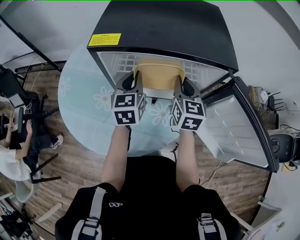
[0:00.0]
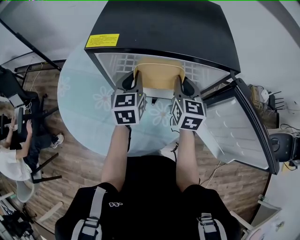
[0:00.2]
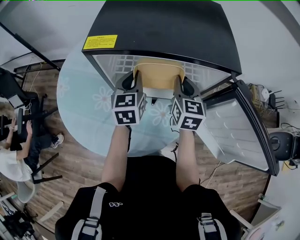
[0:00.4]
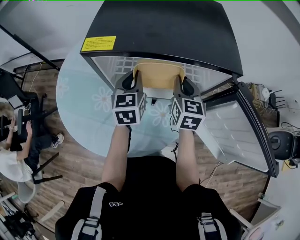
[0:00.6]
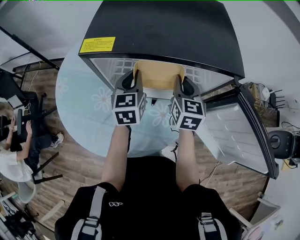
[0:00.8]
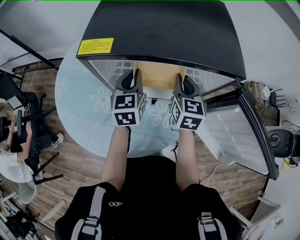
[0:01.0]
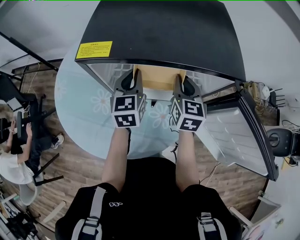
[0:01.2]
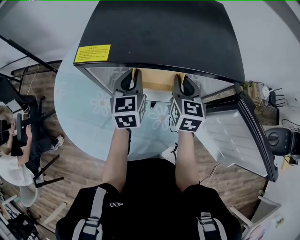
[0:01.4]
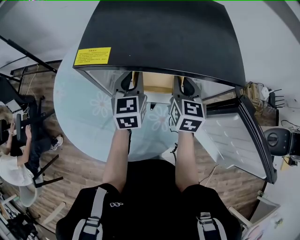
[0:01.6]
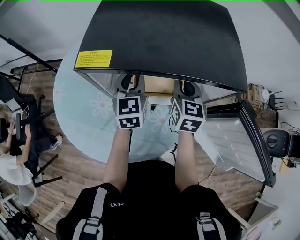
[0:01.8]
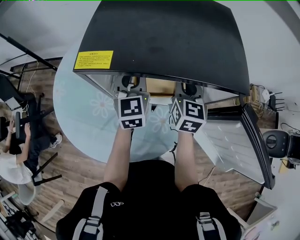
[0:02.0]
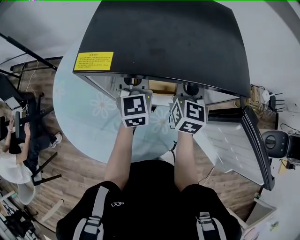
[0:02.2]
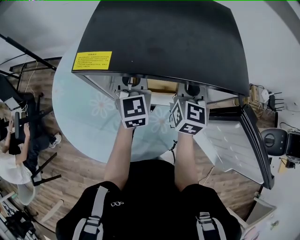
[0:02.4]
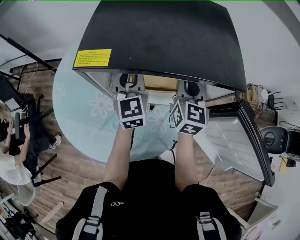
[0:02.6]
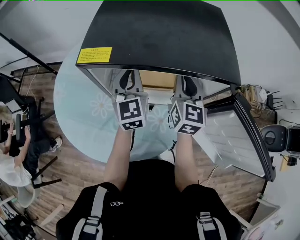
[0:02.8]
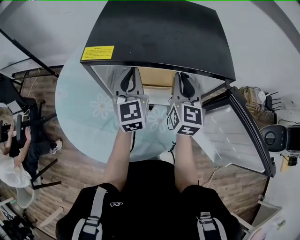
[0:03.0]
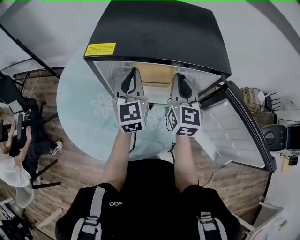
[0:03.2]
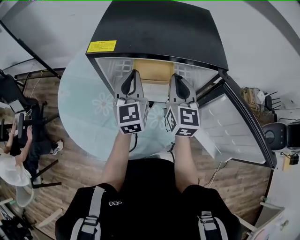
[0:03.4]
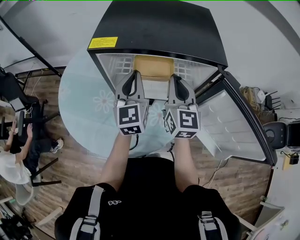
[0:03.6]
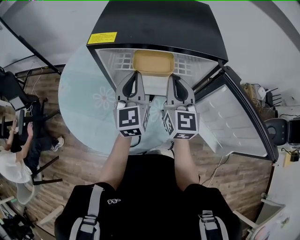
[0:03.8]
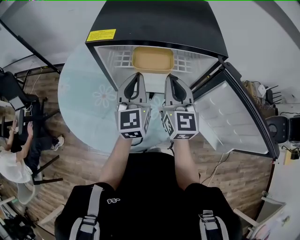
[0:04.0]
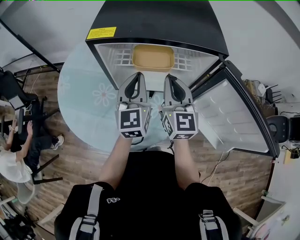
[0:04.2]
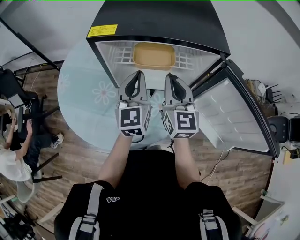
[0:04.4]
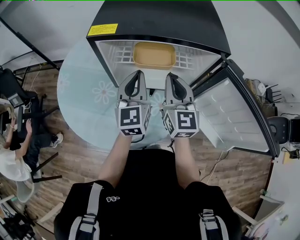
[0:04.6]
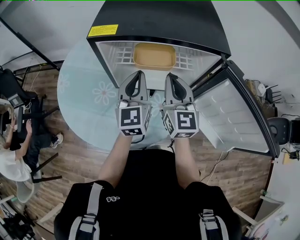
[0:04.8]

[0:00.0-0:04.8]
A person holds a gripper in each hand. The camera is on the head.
0:00.0 to 0:01.6: The left gripper travels forward by about 5 cm. Meanwhile the right gripper moves about 5 cm.
0:01.6 to 0:03.2: The grippers both shift upward by roughly 5 cm.
0:03.2 to 0:04.8: Both grippers move backward, some 5 cm.

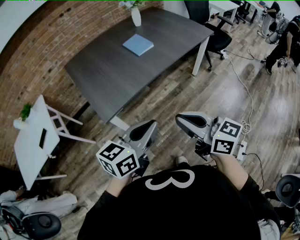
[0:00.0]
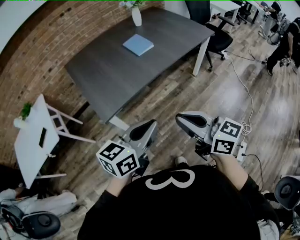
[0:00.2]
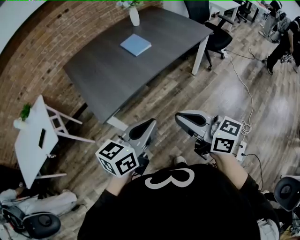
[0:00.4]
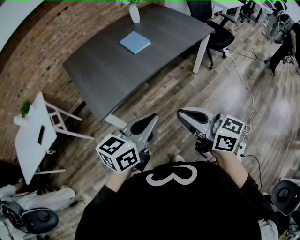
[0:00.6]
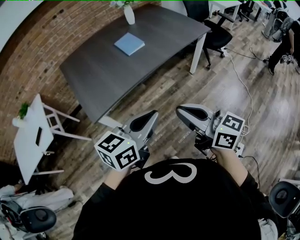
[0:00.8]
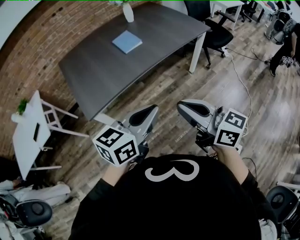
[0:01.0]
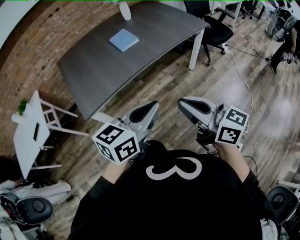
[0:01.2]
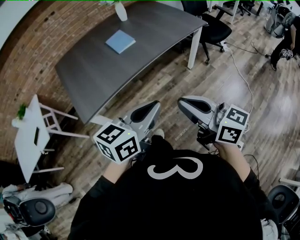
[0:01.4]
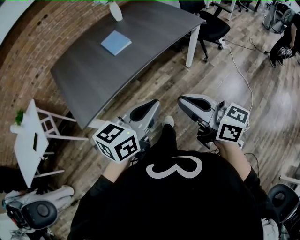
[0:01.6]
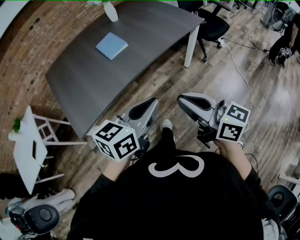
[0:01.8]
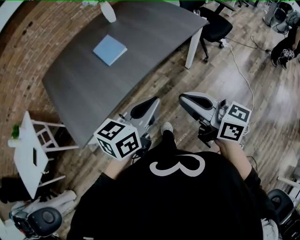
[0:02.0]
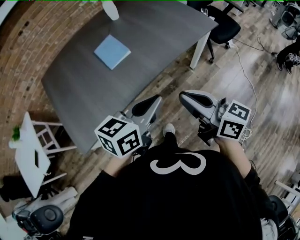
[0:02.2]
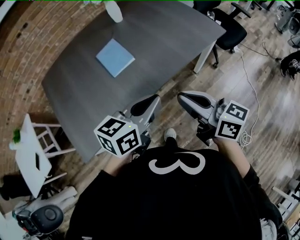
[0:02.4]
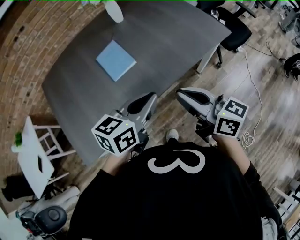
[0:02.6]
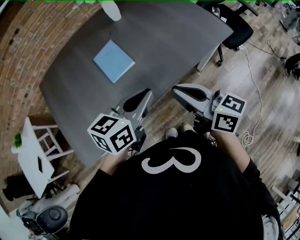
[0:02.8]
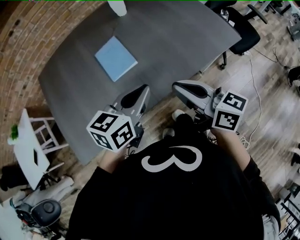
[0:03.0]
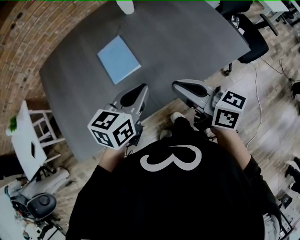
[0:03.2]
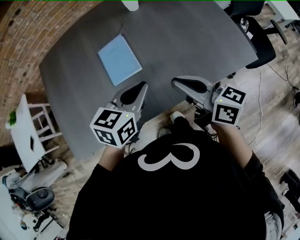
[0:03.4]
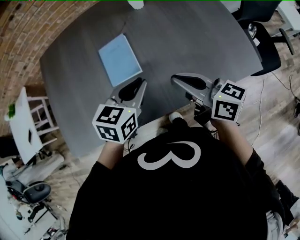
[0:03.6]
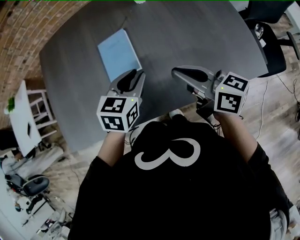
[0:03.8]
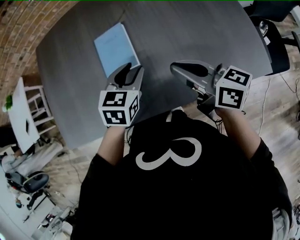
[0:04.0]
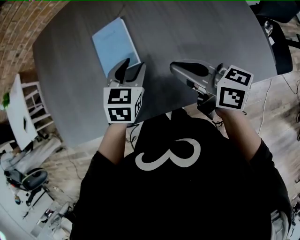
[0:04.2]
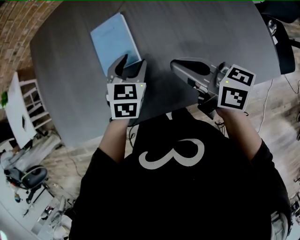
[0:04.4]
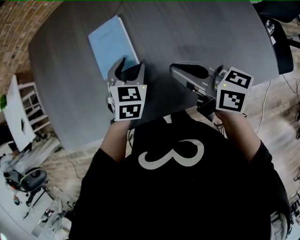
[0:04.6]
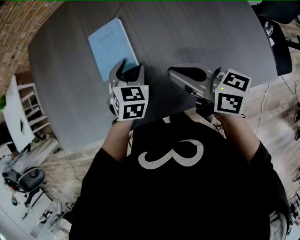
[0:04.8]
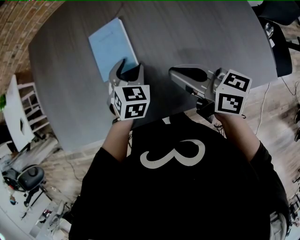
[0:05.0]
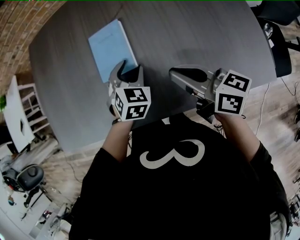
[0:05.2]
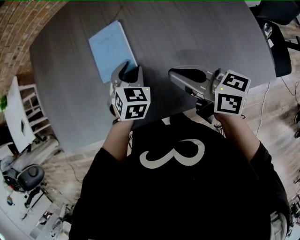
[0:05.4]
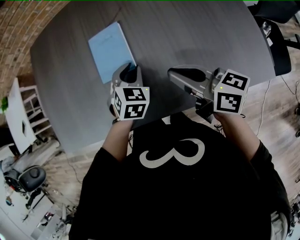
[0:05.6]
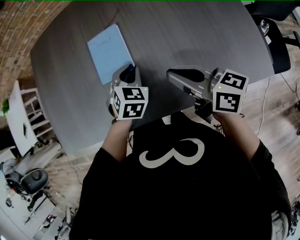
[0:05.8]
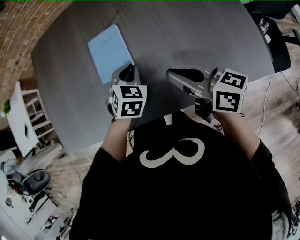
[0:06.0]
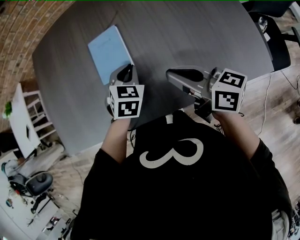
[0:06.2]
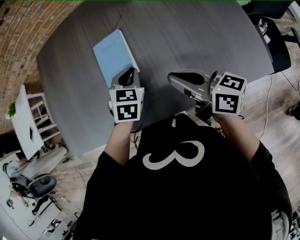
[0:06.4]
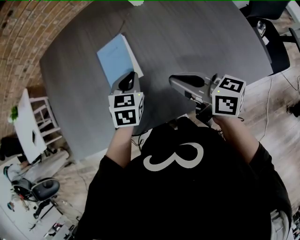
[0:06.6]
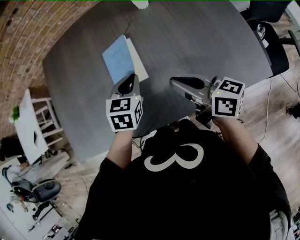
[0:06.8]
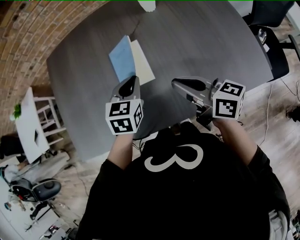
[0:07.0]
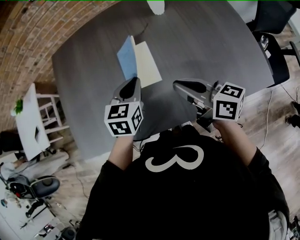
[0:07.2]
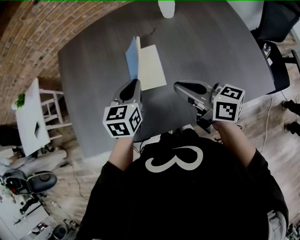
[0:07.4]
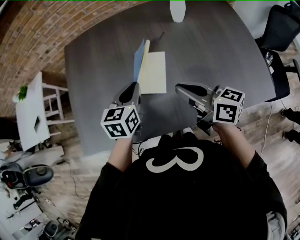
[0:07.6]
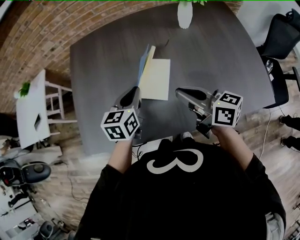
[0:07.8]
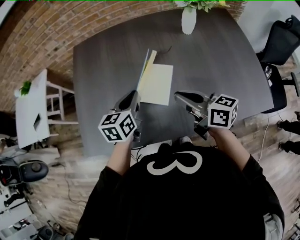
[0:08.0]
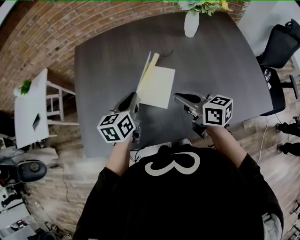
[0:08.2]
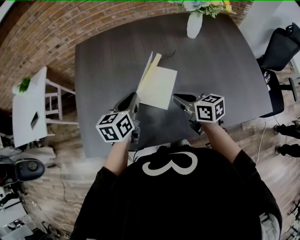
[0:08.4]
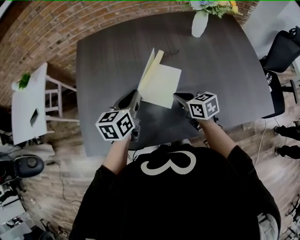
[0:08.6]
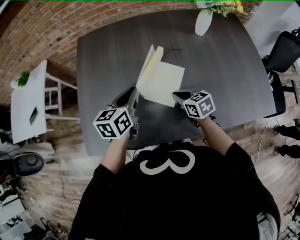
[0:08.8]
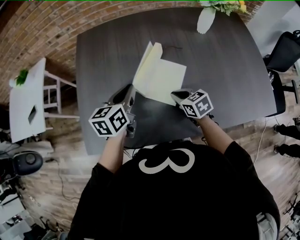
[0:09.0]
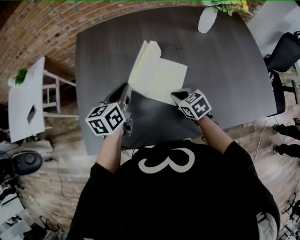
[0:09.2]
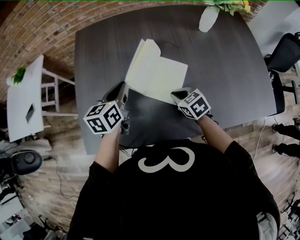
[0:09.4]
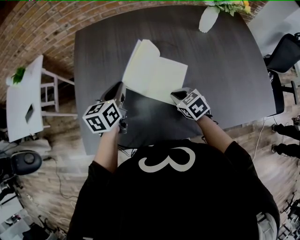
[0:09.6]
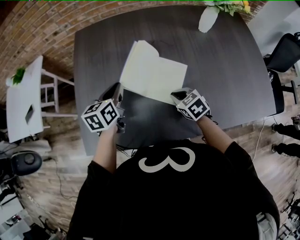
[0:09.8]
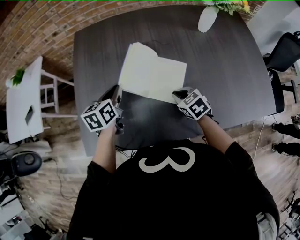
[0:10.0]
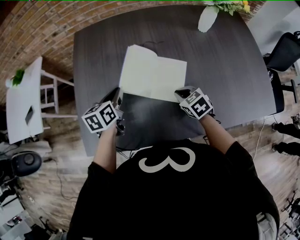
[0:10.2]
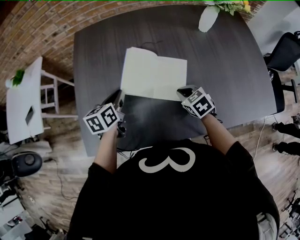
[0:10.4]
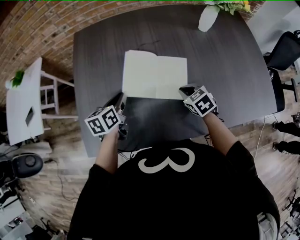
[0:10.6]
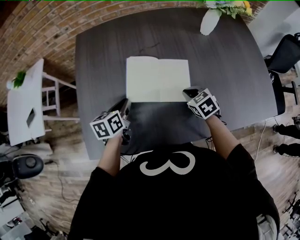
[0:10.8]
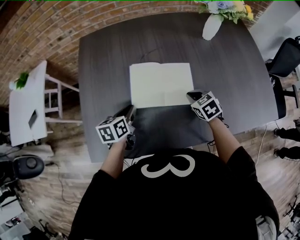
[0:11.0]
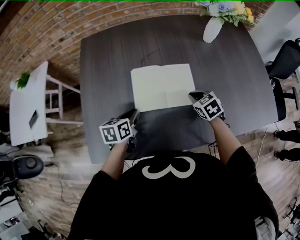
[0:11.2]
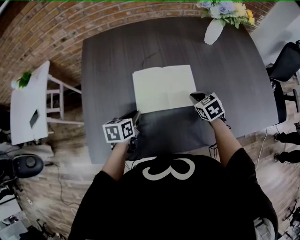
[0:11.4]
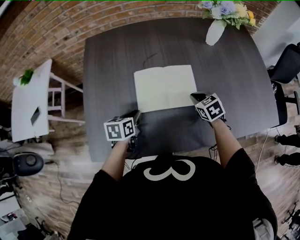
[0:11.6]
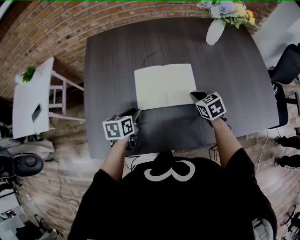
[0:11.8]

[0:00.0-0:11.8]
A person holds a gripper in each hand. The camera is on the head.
0:00.0 to 0:01.4: Both grippers travel together to the right, approximately 15 cm.
0:01.4 to 0:03.0: Both grippers travel together forward, approximately 40 cm.
0:03.0 to 0:04.4: The right gripper moves some 20 cm, and swivels approximately 30 degrees. Meanwhile the left gripper ends up roughly 25 cm from where it was, swivels roughly 40 degrees, and opens.
0:04.4 to 0:06.0: The left gripper closes its fingers.
0:06.0 to 0:07.4: The left gripper is displaced upward and to the left by approximately 15 cm, and changes its angle by some 30 degrees; the right gripper shifts approximately 10 cm to the left and upward.
0:07.4 to 0:08.8: The left gripper goes some 15 cm to the left. The right gripper goes some 20 cm downward, to the left and forward, and points its fingers approximately 30 degrees further downward.
0:08.8 to 0:10.4: The right gripper rotates about 20 degrees. Meanwhile the left gripper heads to the left and downward, covering some 10 cm.
0:10.4 to 0:11.8: The right gripper shifts by about 5 cm; the left gripper travels downward and backward by about 10 cm.

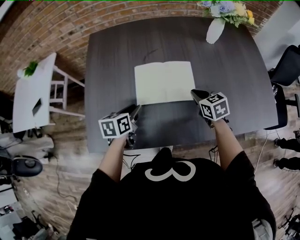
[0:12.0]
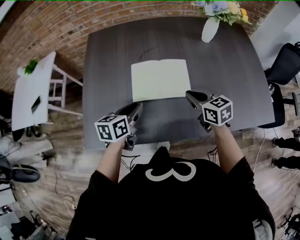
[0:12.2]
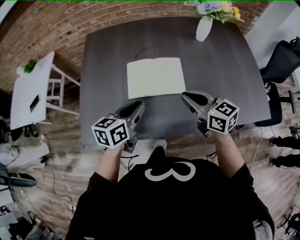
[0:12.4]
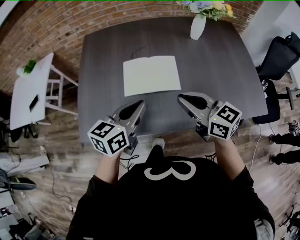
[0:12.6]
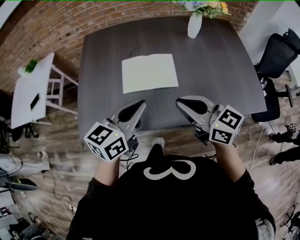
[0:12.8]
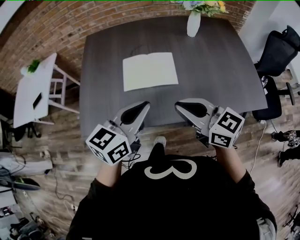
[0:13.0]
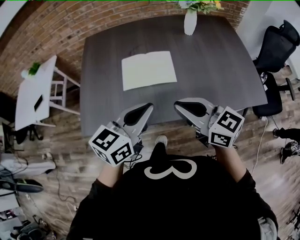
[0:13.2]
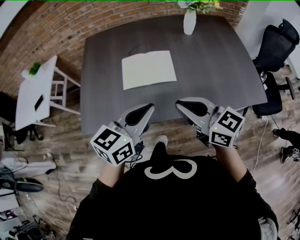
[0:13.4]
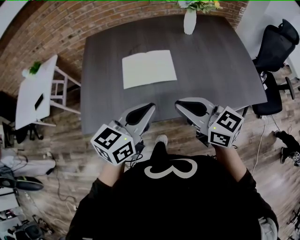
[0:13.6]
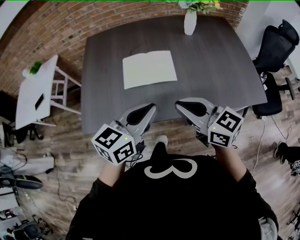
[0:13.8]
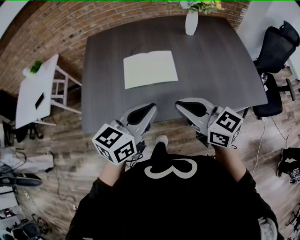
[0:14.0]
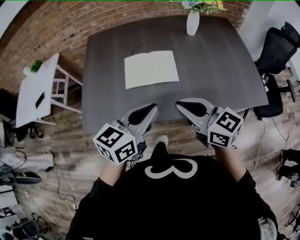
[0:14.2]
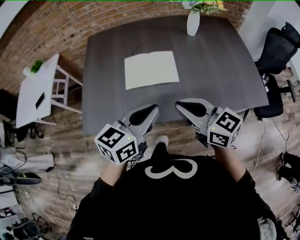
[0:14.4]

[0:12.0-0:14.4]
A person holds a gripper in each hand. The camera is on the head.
0:12.0 to 0:13.2: The left gripper is displaced upward, backward and to the right by about 30 cm, rotates about 40 degrees, and closes up, while the right gripper moves backward and upward, approximately 30 cm, and tilts its fingers about 30 degrees upward.
0:13.2 to 0:14.4: There are only small adjustments of the grippers.

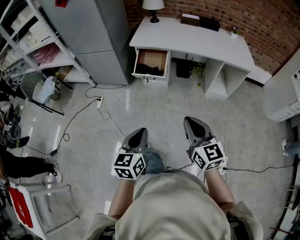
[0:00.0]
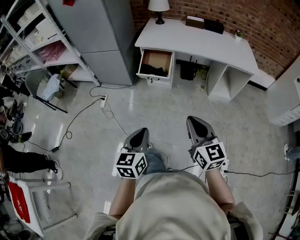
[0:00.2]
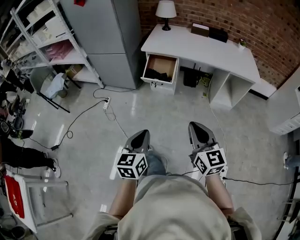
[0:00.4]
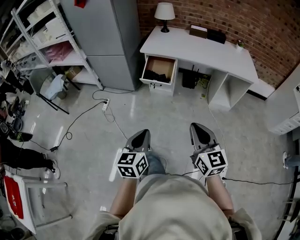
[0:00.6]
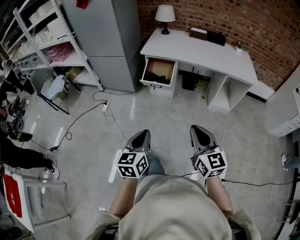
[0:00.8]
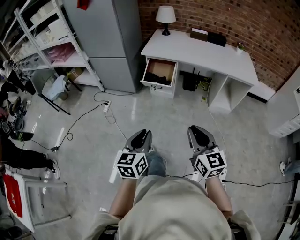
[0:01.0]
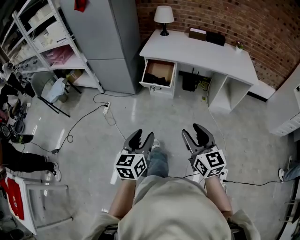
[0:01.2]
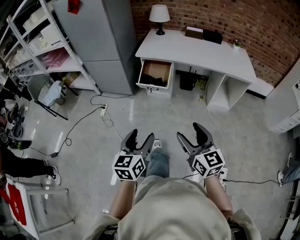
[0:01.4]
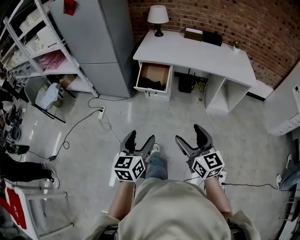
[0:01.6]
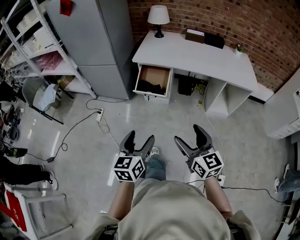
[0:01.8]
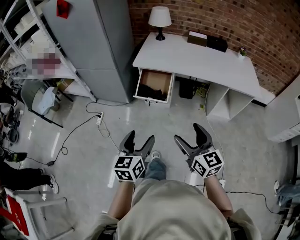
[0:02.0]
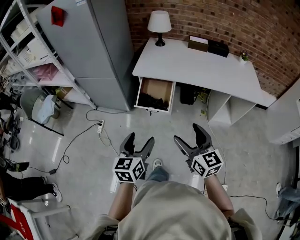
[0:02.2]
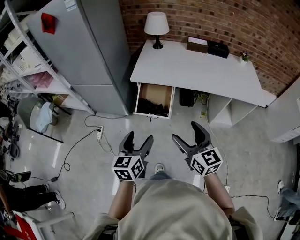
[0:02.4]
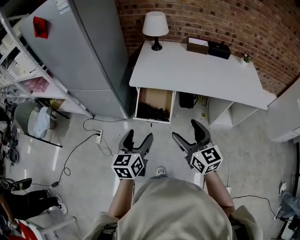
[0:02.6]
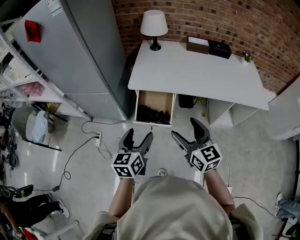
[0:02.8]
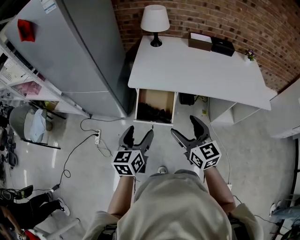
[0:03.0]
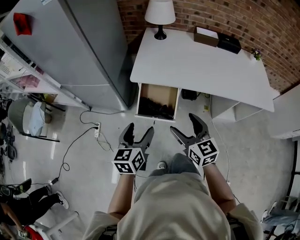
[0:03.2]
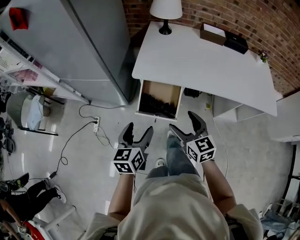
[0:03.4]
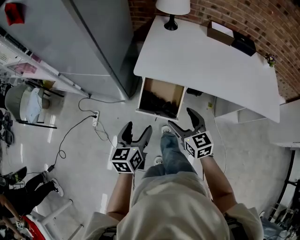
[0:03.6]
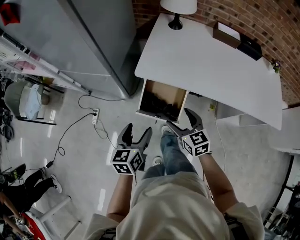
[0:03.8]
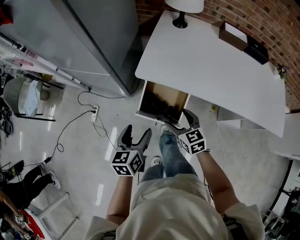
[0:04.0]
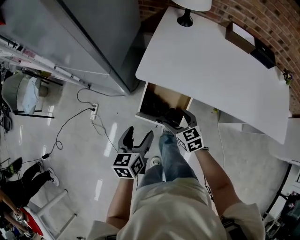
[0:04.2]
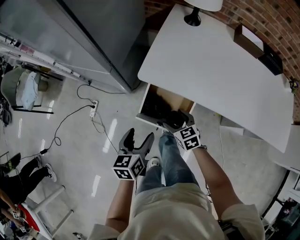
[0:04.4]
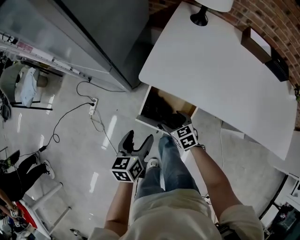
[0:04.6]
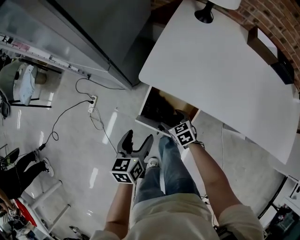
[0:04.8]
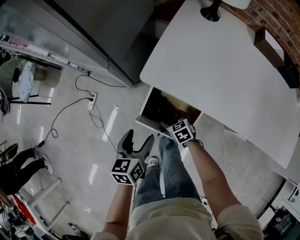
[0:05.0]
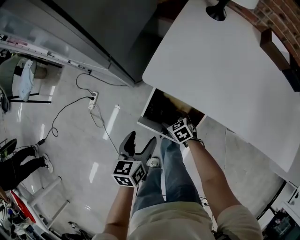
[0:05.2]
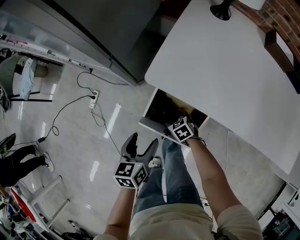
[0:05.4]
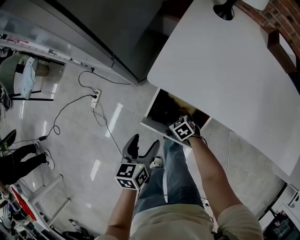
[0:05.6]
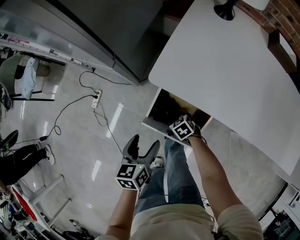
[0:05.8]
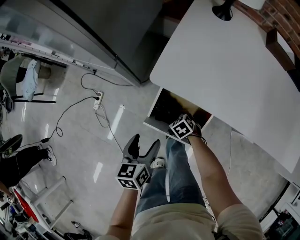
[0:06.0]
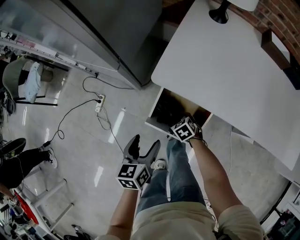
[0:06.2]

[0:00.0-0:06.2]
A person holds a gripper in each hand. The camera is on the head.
0:00.0 to 0:01.6: The right gripper opens up; the left gripper opens.
0:01.6 to 0:03.2: Both grippers are carried forward, some 40 cm.
0:03.2 to 0:04.6: The left gripper goes some 20 cm downward and forward, and swivels approximately 20 degrees. Meanwhile the right gripper shifts approximately 35 cm downward and forward, and tilts its fingers roughly 30 degrees downward.
0:04.6 to 0:06.2: The right gripper is displaced downward by roughly 10 cm, turns by about 20 degrees, and closes its fingers.
